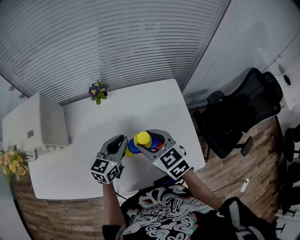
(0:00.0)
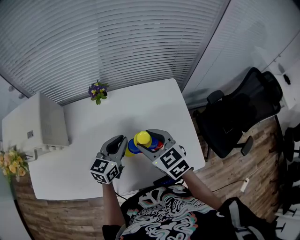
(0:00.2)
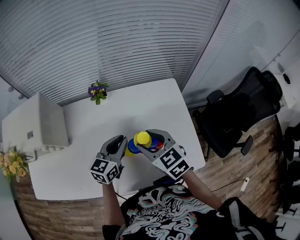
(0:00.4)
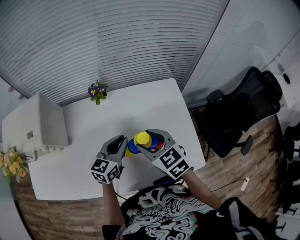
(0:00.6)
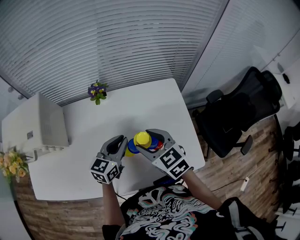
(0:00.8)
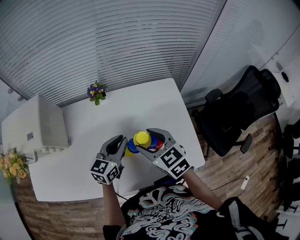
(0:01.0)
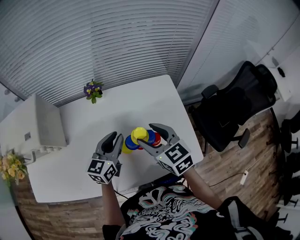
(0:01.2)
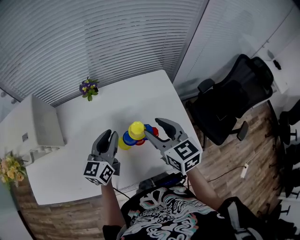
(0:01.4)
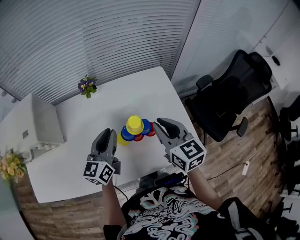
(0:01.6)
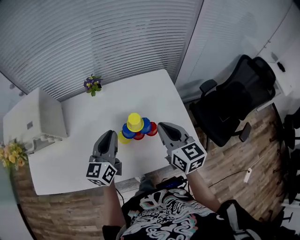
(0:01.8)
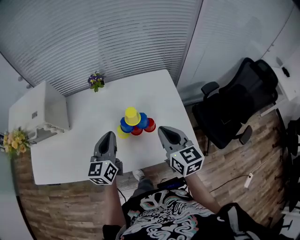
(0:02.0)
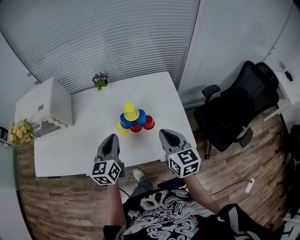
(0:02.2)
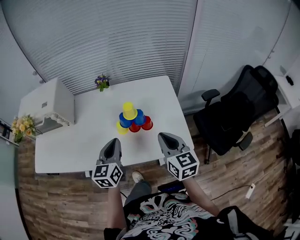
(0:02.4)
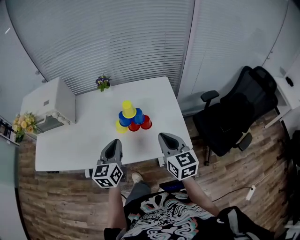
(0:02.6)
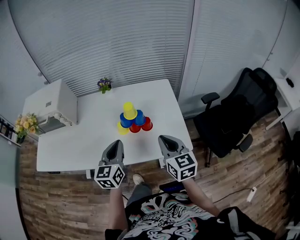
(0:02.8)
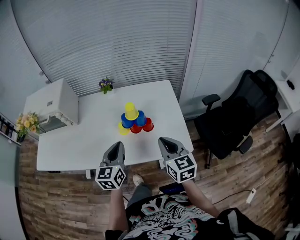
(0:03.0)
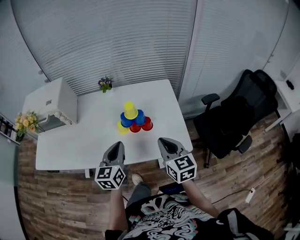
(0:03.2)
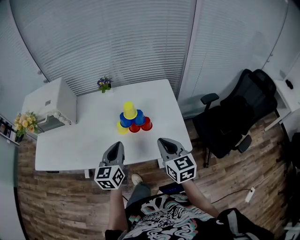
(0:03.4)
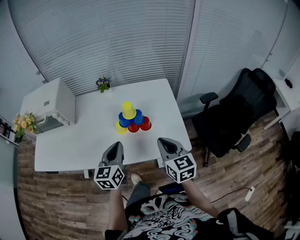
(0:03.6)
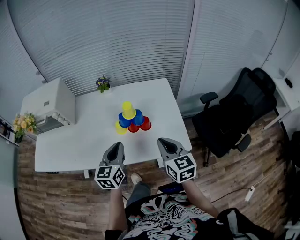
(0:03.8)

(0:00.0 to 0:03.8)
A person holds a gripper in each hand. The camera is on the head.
0:00.0 - 0:01.2: There are only small adjustments of the grippers.
0:01.2 - 0:02.6: The right gripper heads backward and to the right, covering approximately 20 cm, and closes its fingers, while the left gripper goes roughly 20 cm backward.
0:02.6 - 0:03.8: The grippers make only small movements.

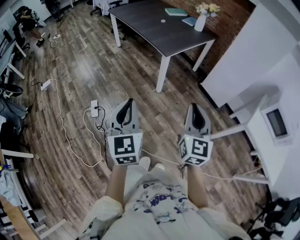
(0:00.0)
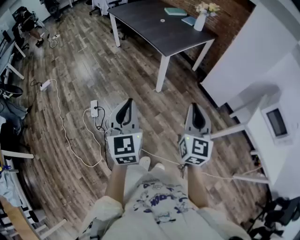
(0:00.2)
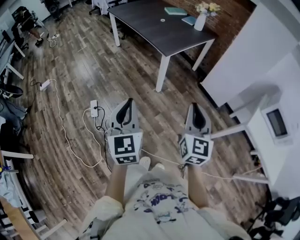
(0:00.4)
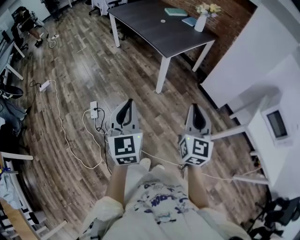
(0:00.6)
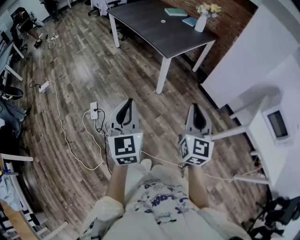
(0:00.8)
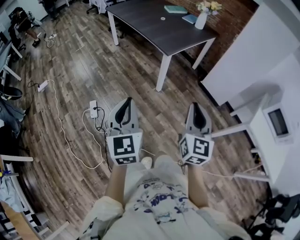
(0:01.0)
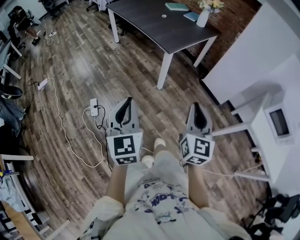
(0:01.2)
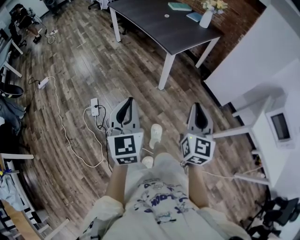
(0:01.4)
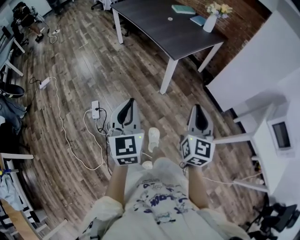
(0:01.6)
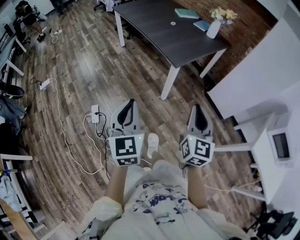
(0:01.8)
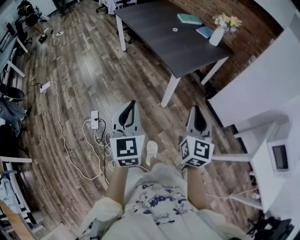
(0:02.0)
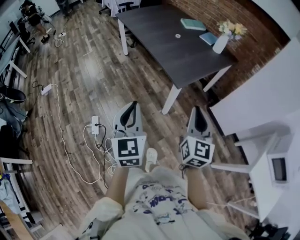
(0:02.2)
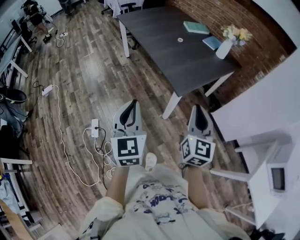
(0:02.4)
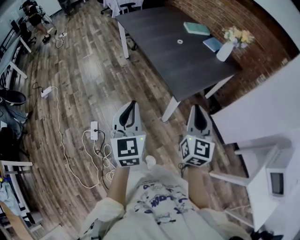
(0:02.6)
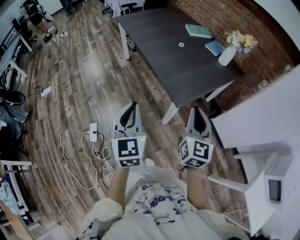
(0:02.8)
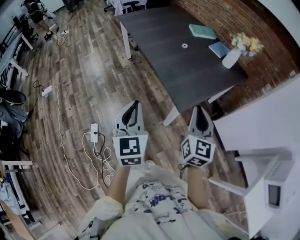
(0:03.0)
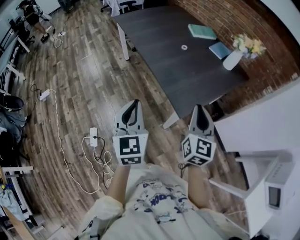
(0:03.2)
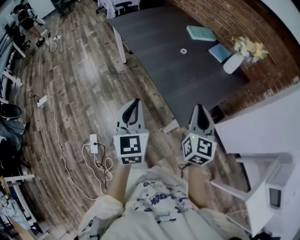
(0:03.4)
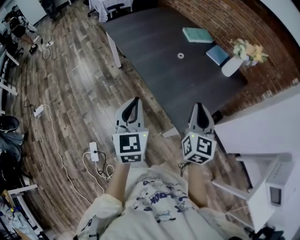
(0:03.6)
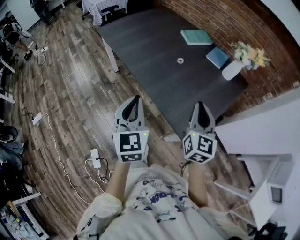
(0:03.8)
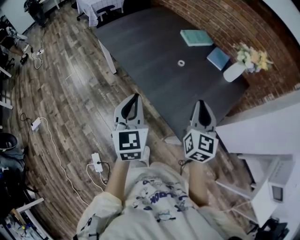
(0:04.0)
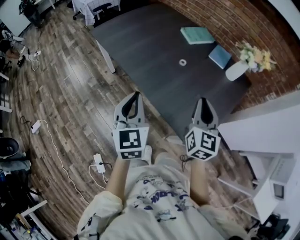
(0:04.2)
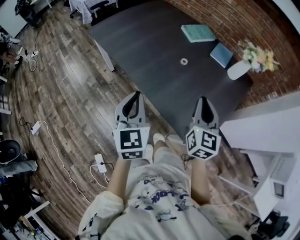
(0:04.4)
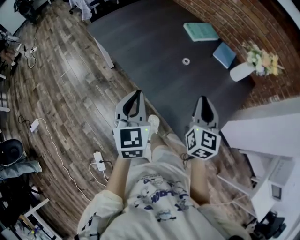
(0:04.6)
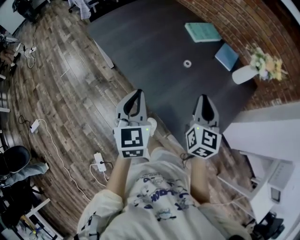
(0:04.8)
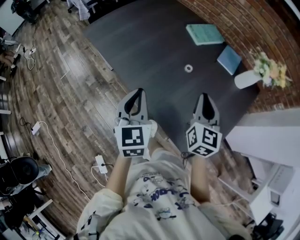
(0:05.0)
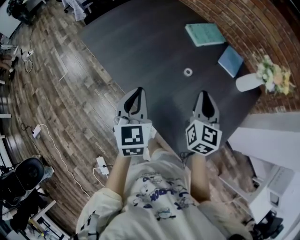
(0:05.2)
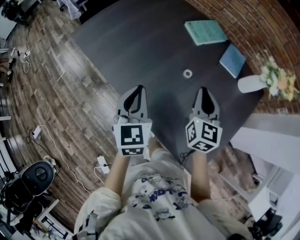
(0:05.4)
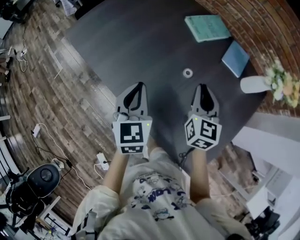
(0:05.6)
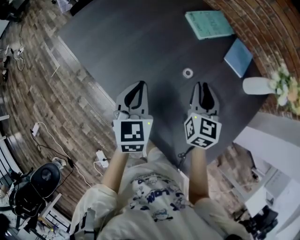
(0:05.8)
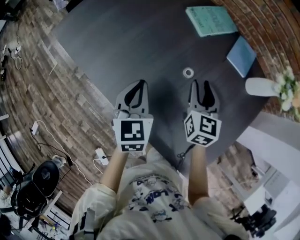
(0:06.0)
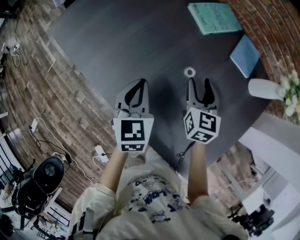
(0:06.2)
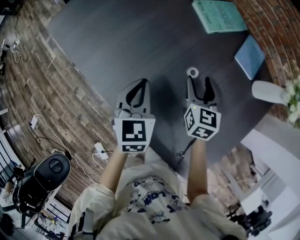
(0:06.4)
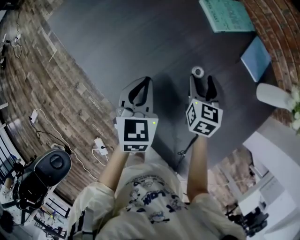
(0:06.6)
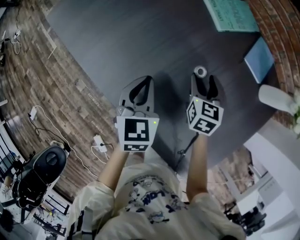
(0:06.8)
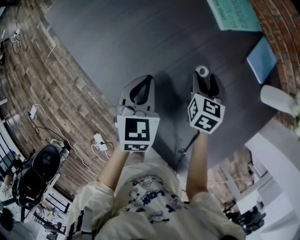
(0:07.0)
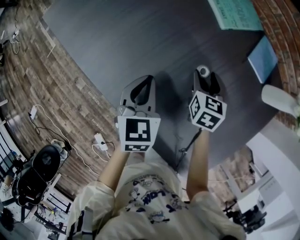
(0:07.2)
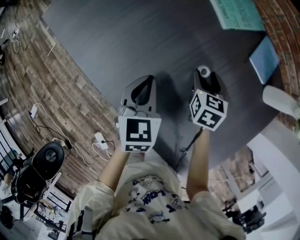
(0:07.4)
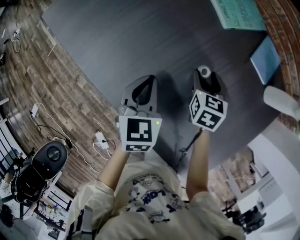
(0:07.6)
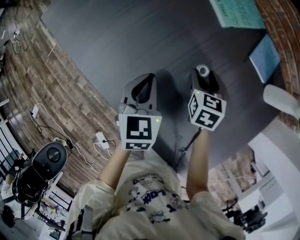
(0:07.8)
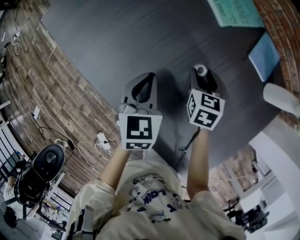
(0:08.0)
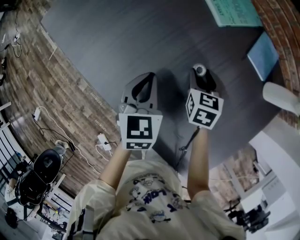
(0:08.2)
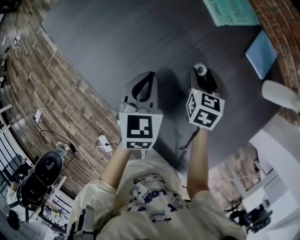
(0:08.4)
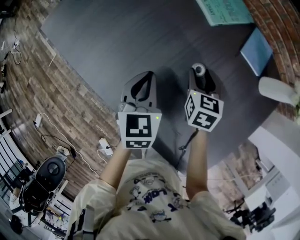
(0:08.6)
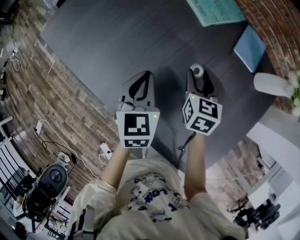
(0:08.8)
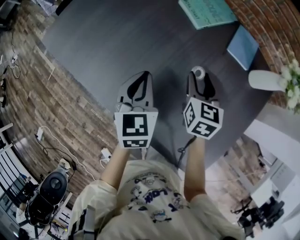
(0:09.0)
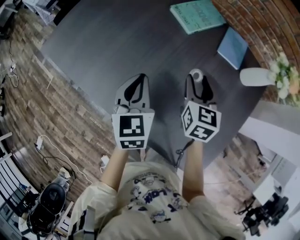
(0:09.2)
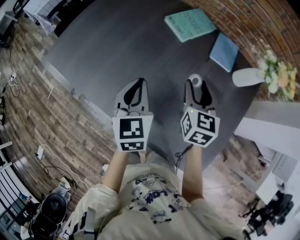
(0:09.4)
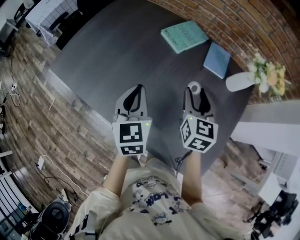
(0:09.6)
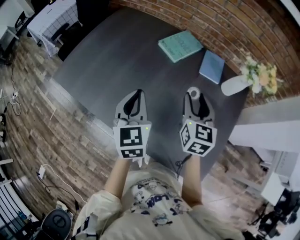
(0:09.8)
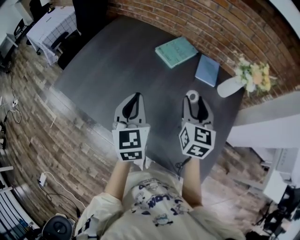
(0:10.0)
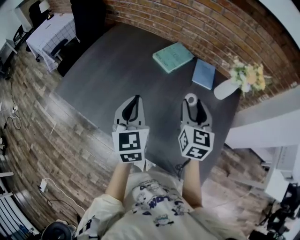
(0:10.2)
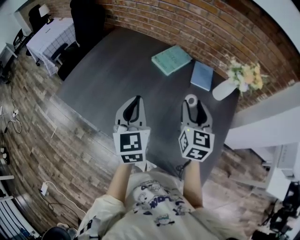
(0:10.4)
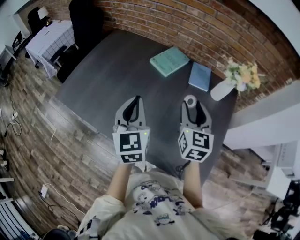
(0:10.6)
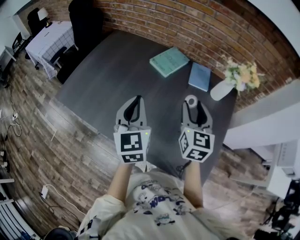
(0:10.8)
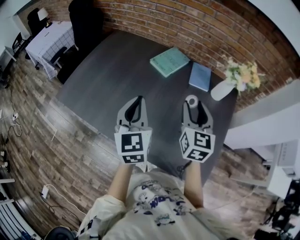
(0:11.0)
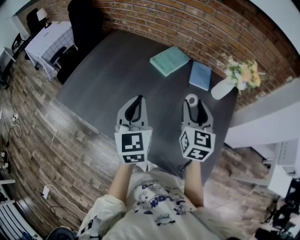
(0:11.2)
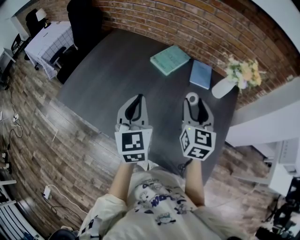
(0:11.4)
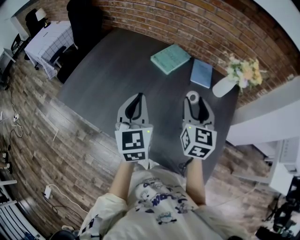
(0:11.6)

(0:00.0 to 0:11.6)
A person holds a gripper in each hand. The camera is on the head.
0:00.0 - 0:01.4: The two grippers go roughly 5 cm forward.
0:01.4 - 0:02.8: The grippers both shift forward by some 40 cm.
0:02.8 - 0:04.4: The two grippers go roughly 35 cm forward.
0:04.4 - 0:05.8: The grippers both shift forward and downward by roughly 30 cm.
0:05.8 - 0:07.2: The right gripper goes some 15 cm downward and forward, swivels roughly 20 degrees, and opens its fingers. Meanwhile the left gripper heads downward, covering roughly 10 cm.
0:07.2 - 0:08.8: The right gripper moves upward, roughly 5 cm.
0:08.8 - 0:10.2: The left gripper is displaced upward by about 20 cm, and turns by approximately 20 degrees. Meanwhile the right gripper is displaced upward and backward by about 25 cm, and rotates about 30 degrees.
0:10.2 - 0:11.6: There are only small adjustments of the grippers.

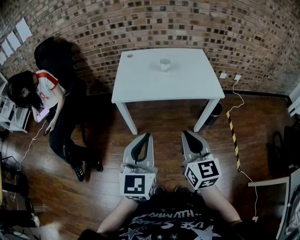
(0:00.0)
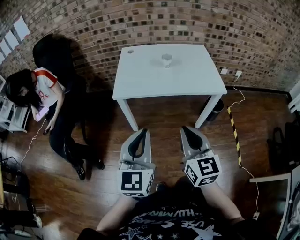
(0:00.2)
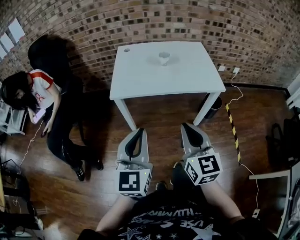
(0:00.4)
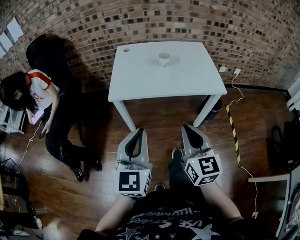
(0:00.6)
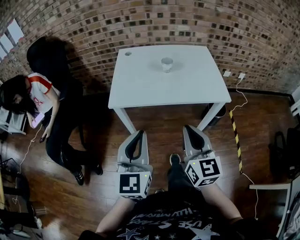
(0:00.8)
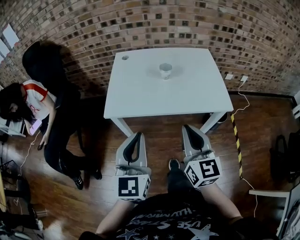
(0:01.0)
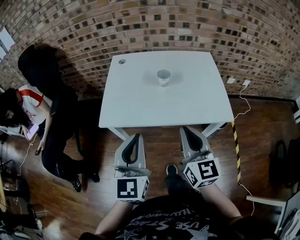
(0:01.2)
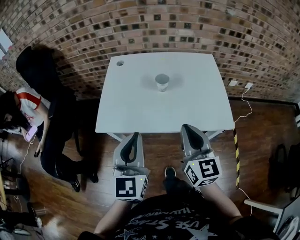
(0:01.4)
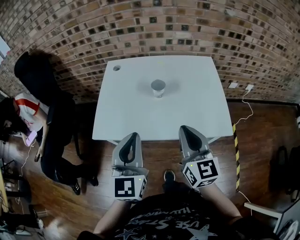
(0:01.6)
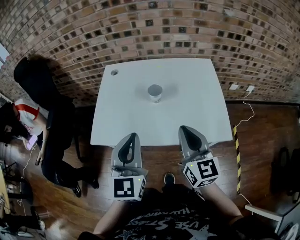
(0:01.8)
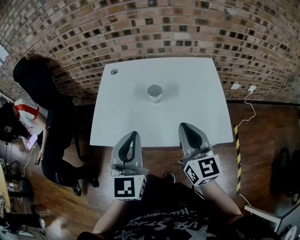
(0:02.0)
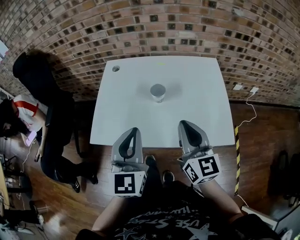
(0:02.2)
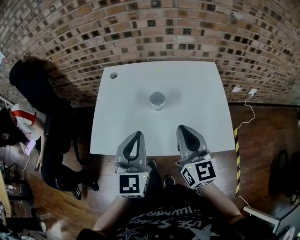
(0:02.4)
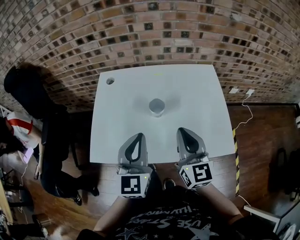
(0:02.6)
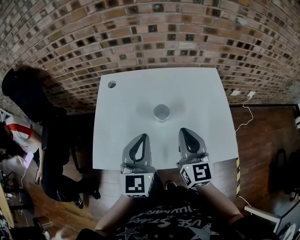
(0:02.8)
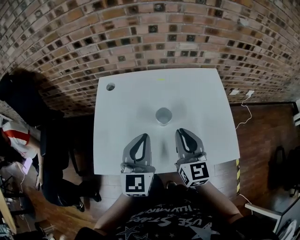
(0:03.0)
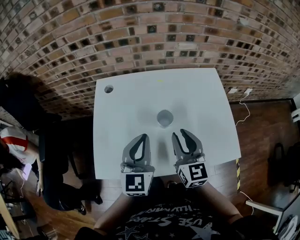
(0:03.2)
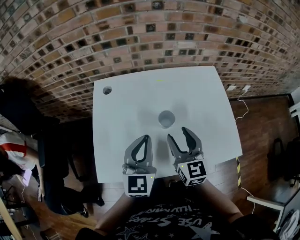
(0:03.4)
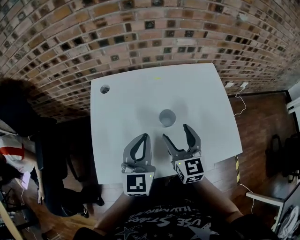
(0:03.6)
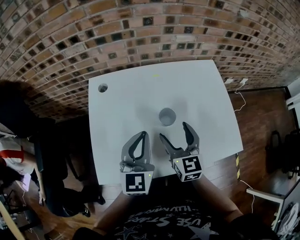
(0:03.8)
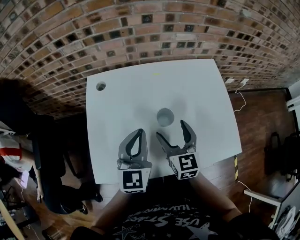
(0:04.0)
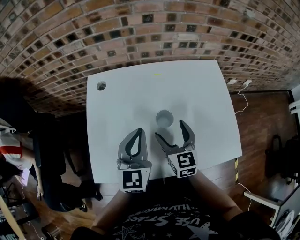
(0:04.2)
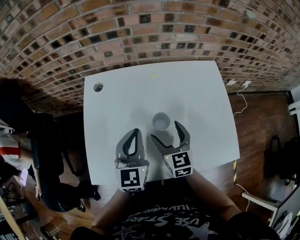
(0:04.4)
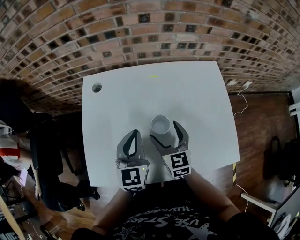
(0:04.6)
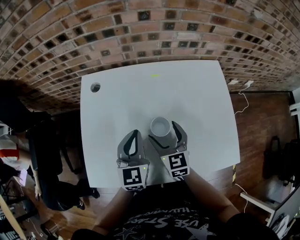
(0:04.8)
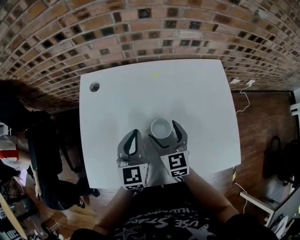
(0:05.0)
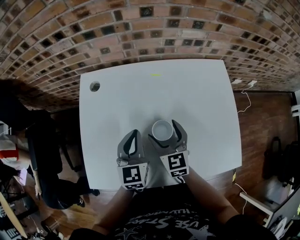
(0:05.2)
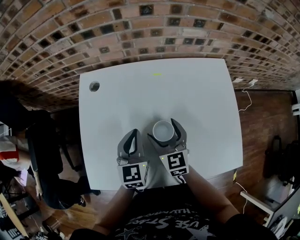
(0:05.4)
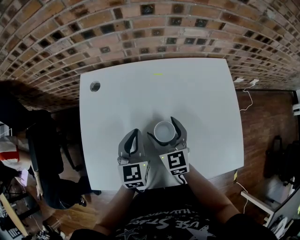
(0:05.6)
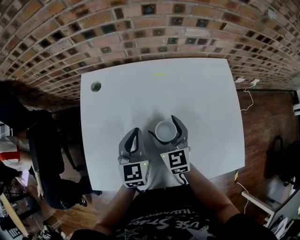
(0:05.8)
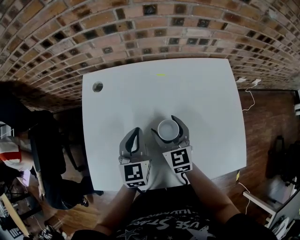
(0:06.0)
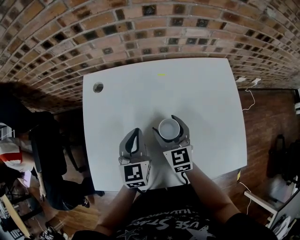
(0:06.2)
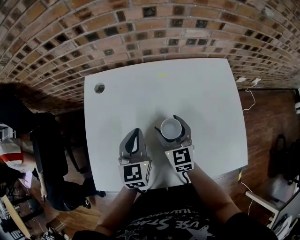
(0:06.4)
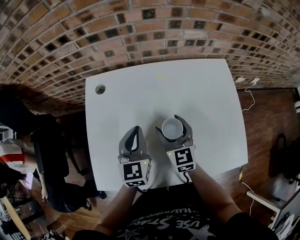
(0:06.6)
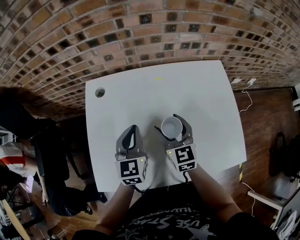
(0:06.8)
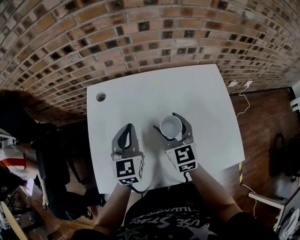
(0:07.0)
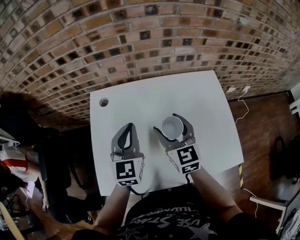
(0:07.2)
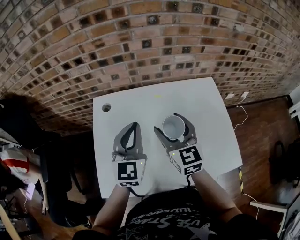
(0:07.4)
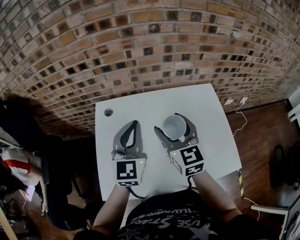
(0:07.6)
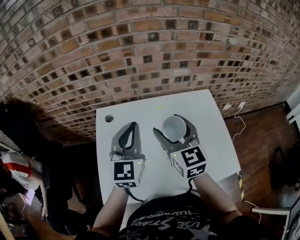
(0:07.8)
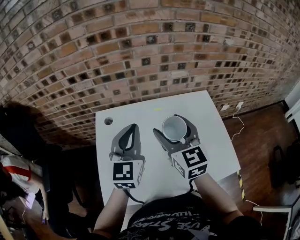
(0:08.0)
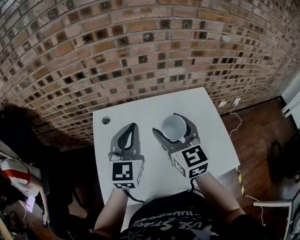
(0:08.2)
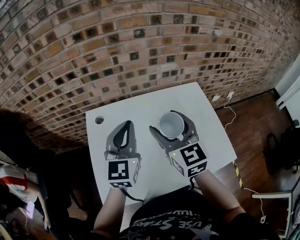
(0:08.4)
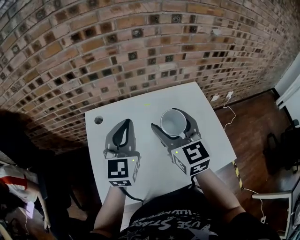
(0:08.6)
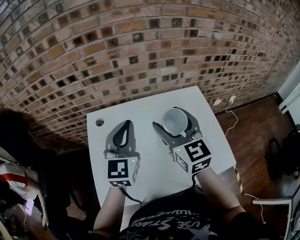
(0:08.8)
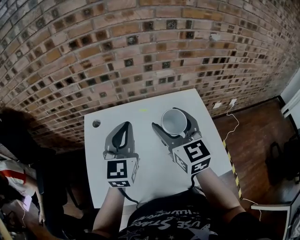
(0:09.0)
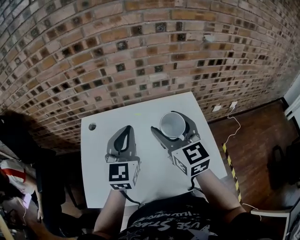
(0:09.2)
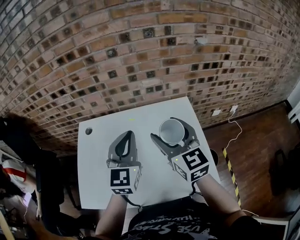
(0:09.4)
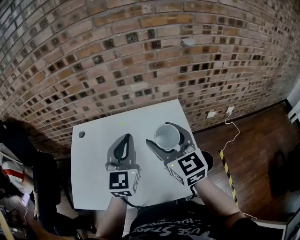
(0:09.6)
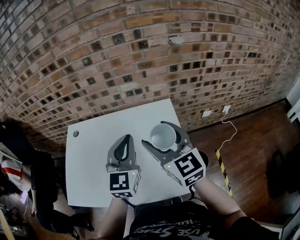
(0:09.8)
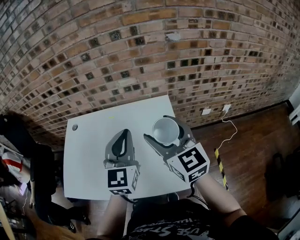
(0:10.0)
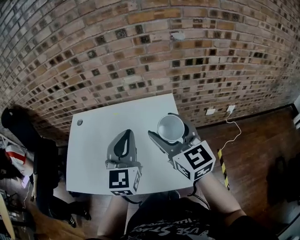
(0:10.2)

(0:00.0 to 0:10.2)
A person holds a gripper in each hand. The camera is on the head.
0:00.0 - 0:01.4: The two grippers go roughly 25 cm forward.
0:01.4 - 0:03.0: The grippers both shift forward by approximately 20 cm.
0:03.0 - 0:04.4: The right gripper heads downward and forward, covering some 10 cm, and opens its fingers; the left gripper shifts some 5 cm forward.
0:04.4 - 0:05.8: The right gripper moves forward, approximately 5 cm; the left gripper travels downward by approximately 5 cm.
0:05.8 - 0:07.2: Both grippers move upward, about 10 cm.
0:07.2 - 0:08.8: Both grippers move upward, some 10 cm.
0:08.8 - 0:10.2: Both grippers move to the right, approximately 25 cm.
